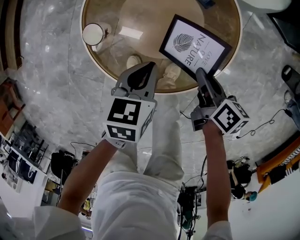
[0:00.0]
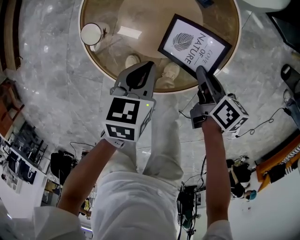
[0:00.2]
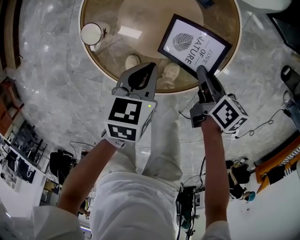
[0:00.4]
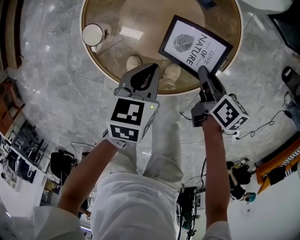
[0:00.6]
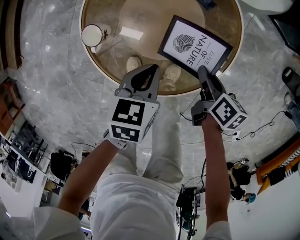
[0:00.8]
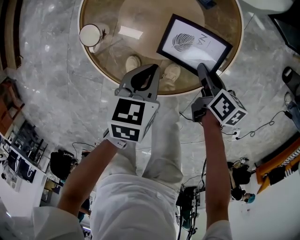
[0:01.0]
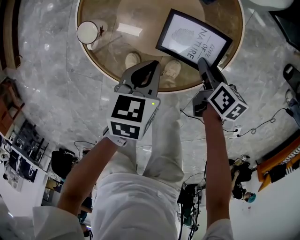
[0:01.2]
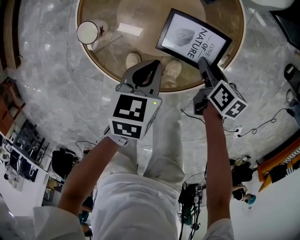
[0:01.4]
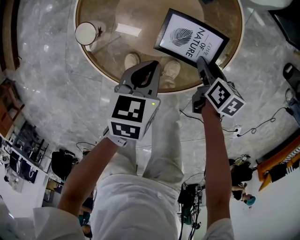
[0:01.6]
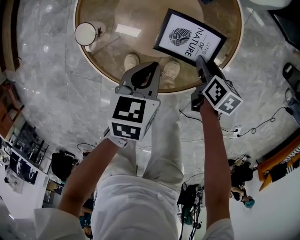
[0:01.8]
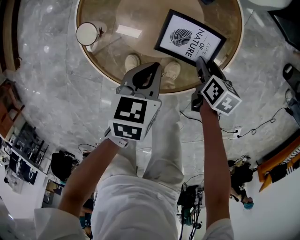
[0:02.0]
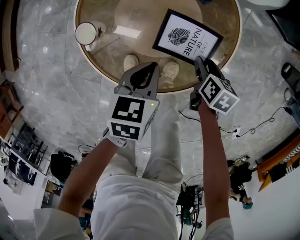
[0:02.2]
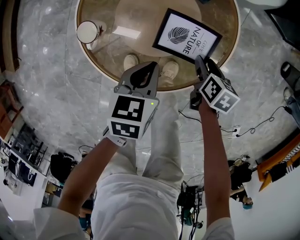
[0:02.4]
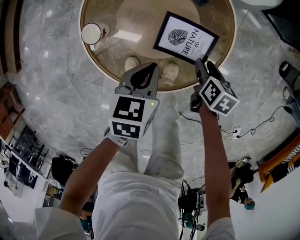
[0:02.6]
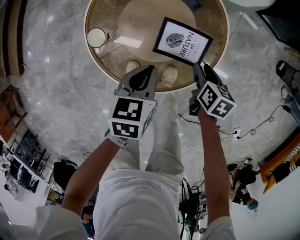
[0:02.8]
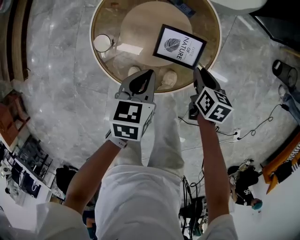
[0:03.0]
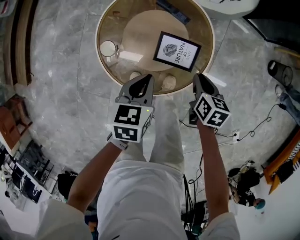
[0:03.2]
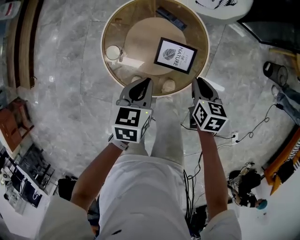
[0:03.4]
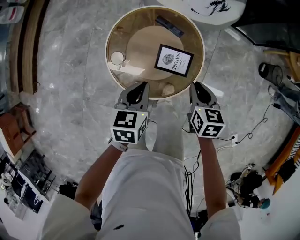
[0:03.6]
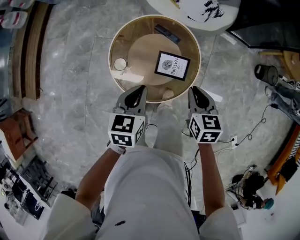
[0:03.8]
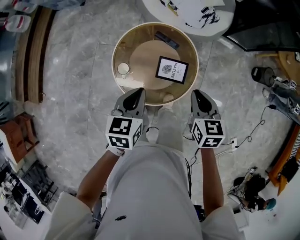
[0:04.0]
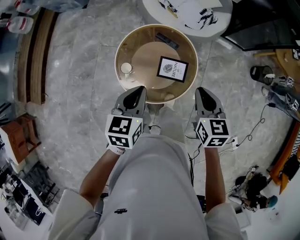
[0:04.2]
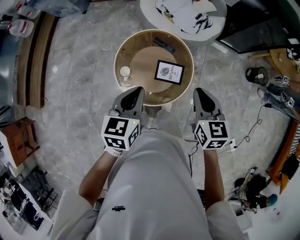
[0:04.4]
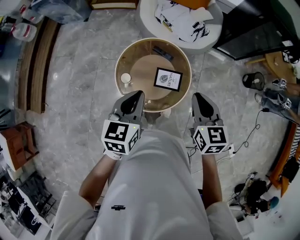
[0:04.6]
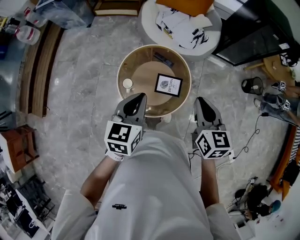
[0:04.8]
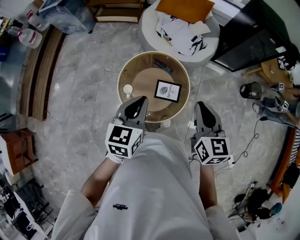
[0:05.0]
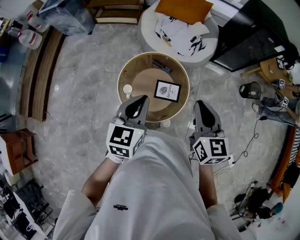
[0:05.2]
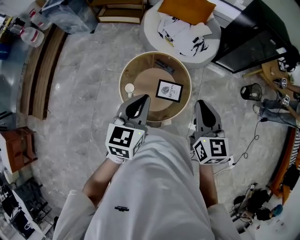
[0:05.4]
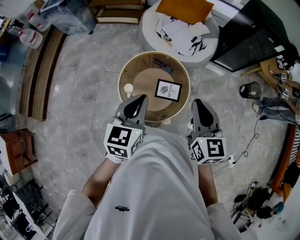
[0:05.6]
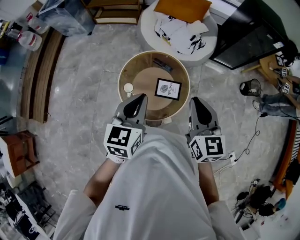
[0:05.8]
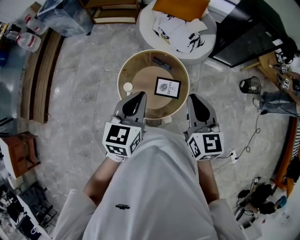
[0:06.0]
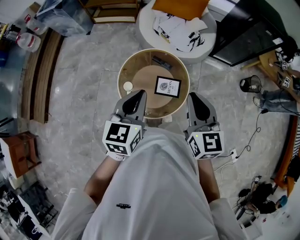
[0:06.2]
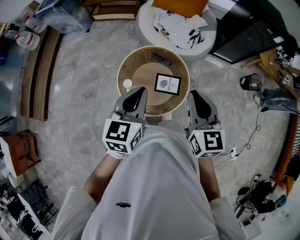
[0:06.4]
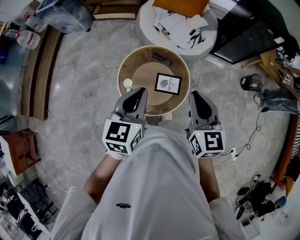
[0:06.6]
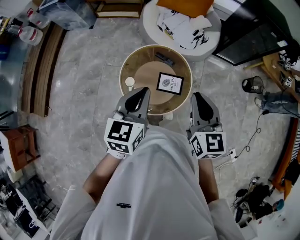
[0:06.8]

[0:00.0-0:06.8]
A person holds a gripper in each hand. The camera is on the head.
0:00.0 to 0:01.4: The right gripper goes about 10 cm downward, and opens.
0:01.4 to 0:02.8: The two grippers go some 5 cm upward.
0:02.8 to 0:04.0: Both grippers move upward, some 30 cm. The right gripper turns by approximately 30 degrees, and closes its fingers.
0:04.0 to 0:05.4: Both grippers move upward, some 20 cm. The right gripper rotates about 20 degrees.
0:05.4 to 0:06.8: The grippers stay close to where they were, moving slightly.

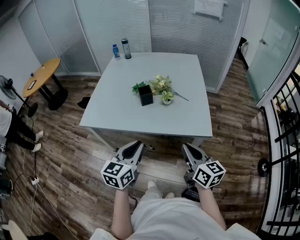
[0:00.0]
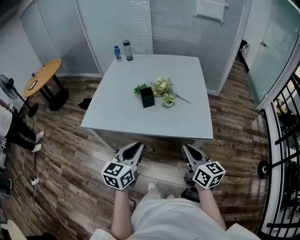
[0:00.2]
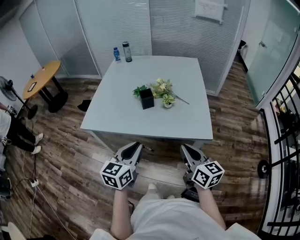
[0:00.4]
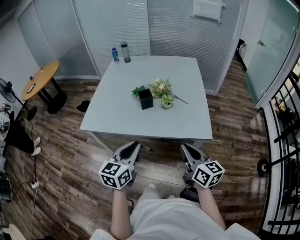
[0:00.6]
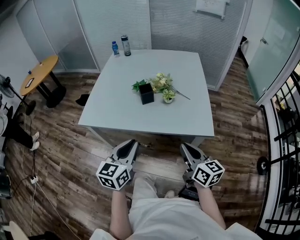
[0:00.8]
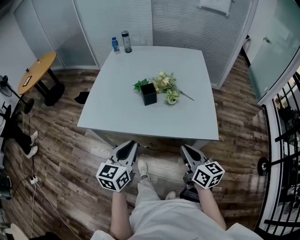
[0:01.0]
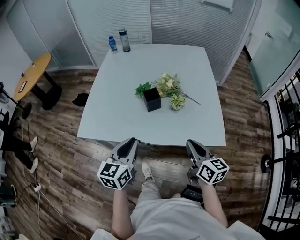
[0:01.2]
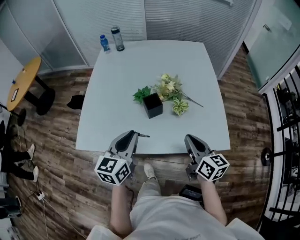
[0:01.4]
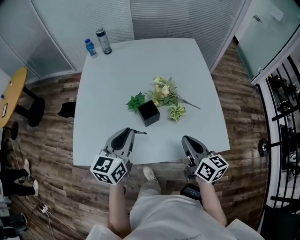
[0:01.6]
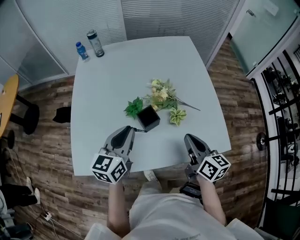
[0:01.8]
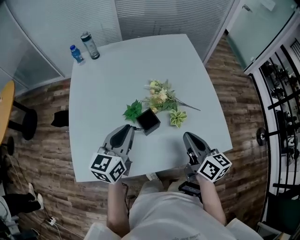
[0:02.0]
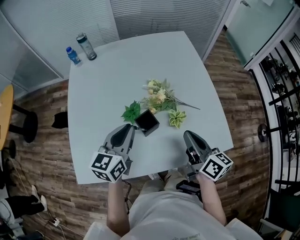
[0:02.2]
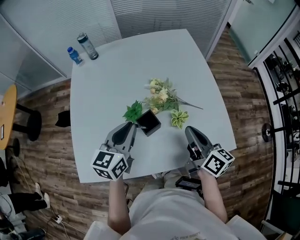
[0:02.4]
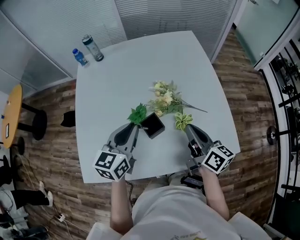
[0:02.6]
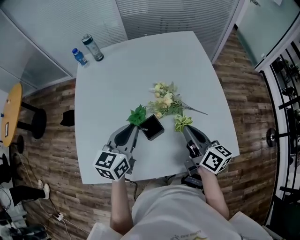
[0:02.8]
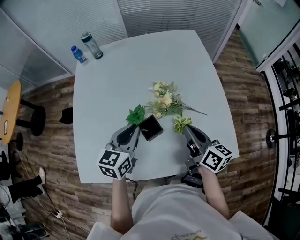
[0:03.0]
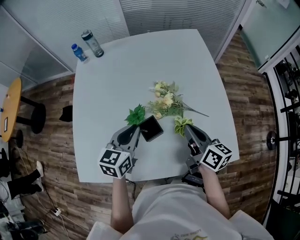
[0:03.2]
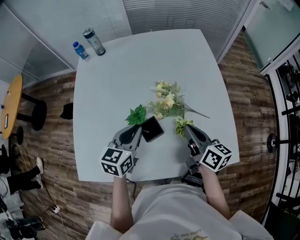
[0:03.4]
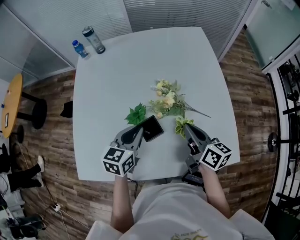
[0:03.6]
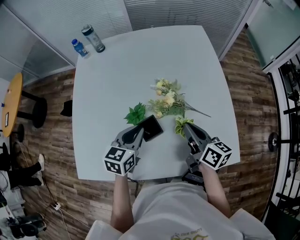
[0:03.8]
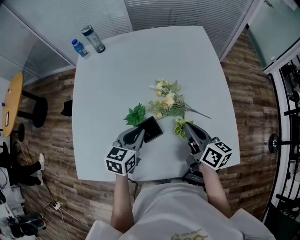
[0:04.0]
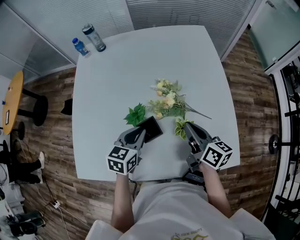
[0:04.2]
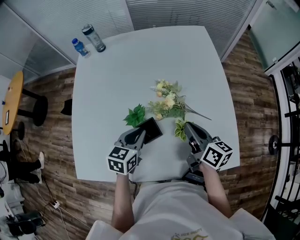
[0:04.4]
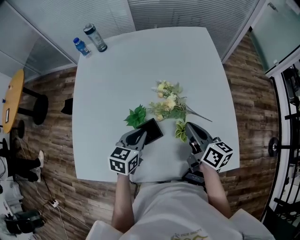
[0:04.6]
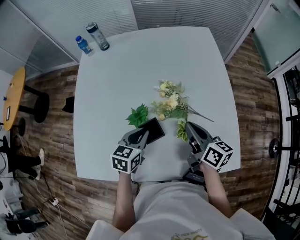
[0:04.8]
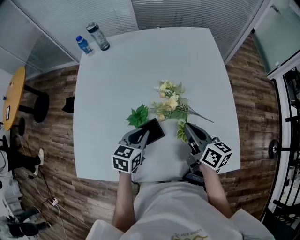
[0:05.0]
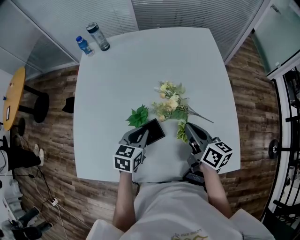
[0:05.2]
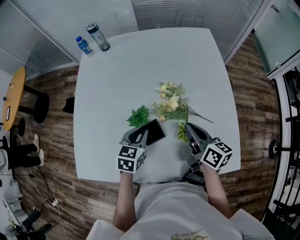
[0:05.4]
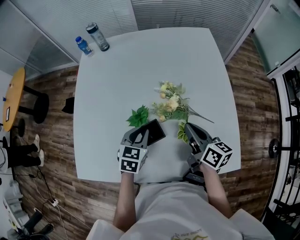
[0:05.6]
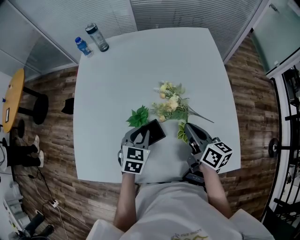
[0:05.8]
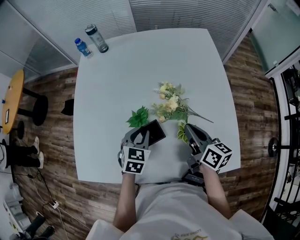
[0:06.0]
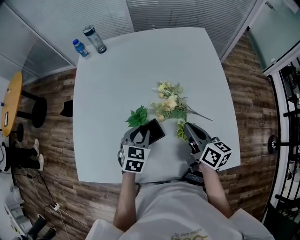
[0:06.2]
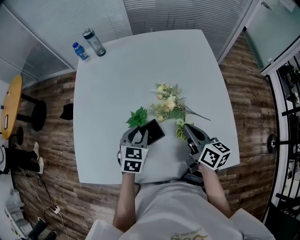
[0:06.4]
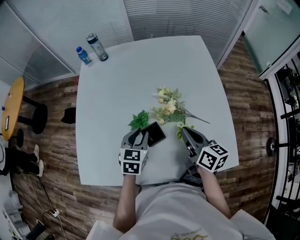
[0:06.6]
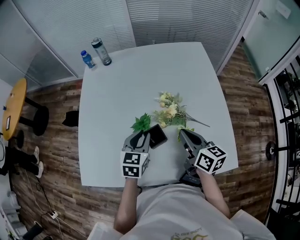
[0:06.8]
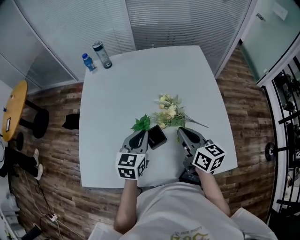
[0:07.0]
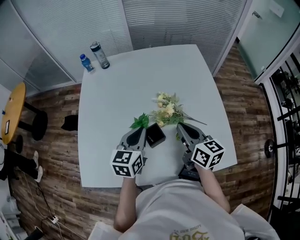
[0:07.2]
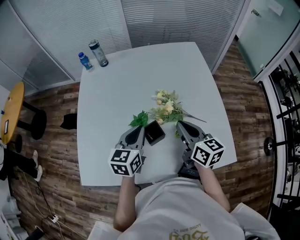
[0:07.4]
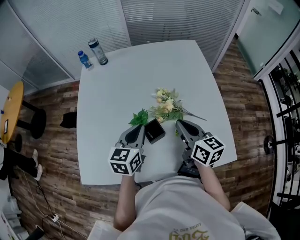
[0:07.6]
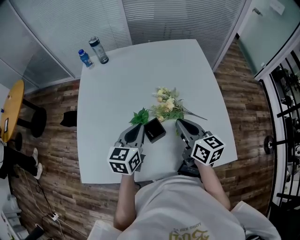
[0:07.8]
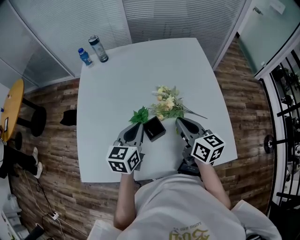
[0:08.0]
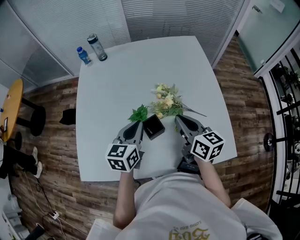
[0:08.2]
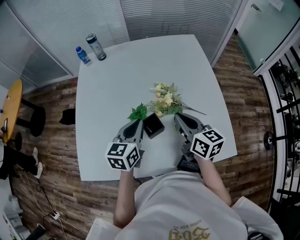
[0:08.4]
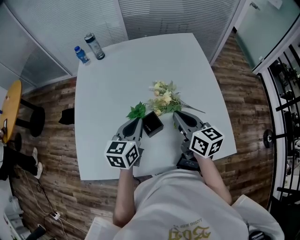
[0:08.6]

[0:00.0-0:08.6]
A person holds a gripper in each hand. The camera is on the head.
0:00.0 to 0:01.4: The right gripper moves forward, roughly 20 cm. Meanwhile the left gripper is displaced forward and to the left by approximately 25 cm.
0:01.4 to 0:02.8: The two grippers go approximately 20 cm forward.
0:02.8 to 0:04.4: The left gripper is displaced downward by approximately 10 cm. The right gripper is displaced forward and downward by approximately 10 cm.
0:04.4 to 0:05.8: The grippers stay close to where they were, moving slightly.
0:05.8 to 0:07.2: The right gripper moves upward, some 5 cm. The left gripper moves upward, some 10 cm, and rotates some 30 degrees.
0:07.2 to 0:08.6: Both grippers stay put.

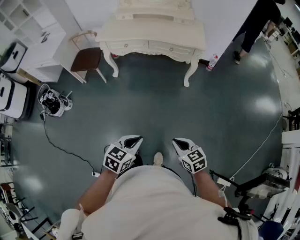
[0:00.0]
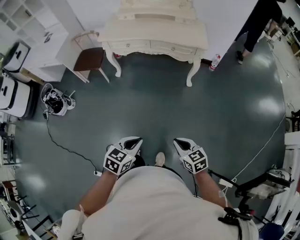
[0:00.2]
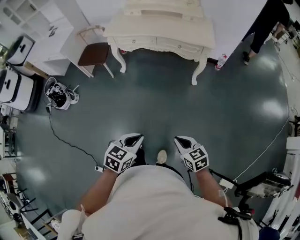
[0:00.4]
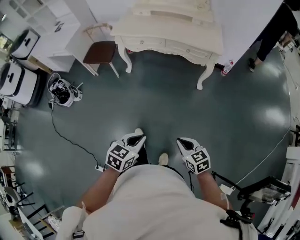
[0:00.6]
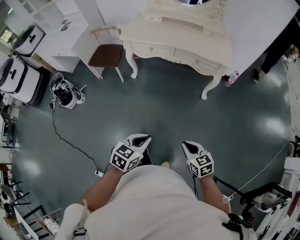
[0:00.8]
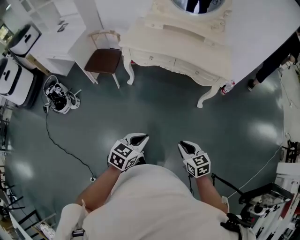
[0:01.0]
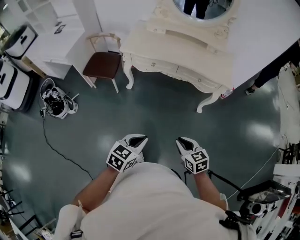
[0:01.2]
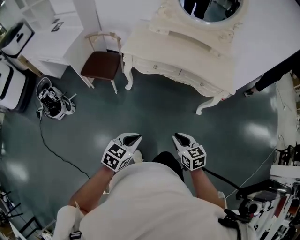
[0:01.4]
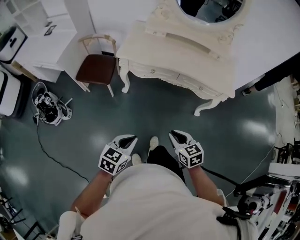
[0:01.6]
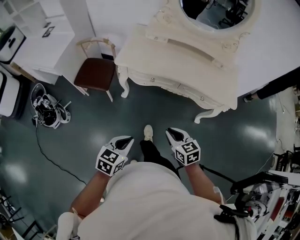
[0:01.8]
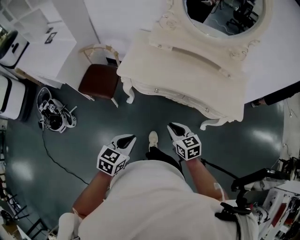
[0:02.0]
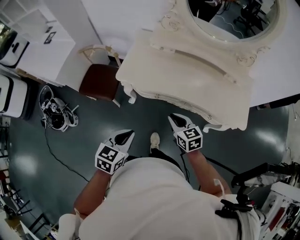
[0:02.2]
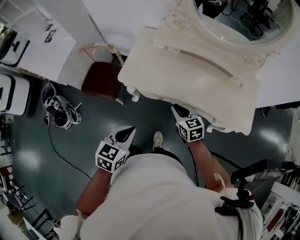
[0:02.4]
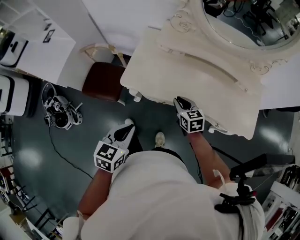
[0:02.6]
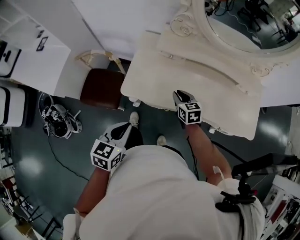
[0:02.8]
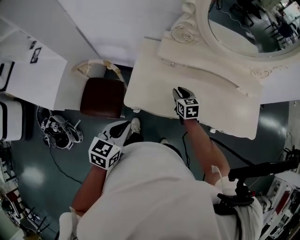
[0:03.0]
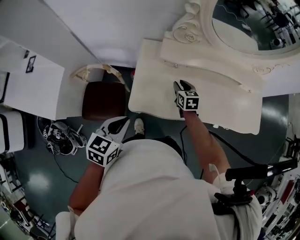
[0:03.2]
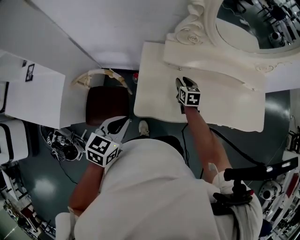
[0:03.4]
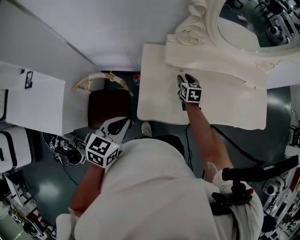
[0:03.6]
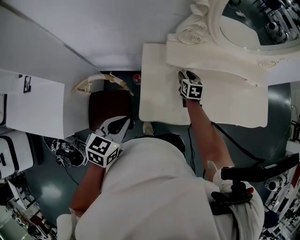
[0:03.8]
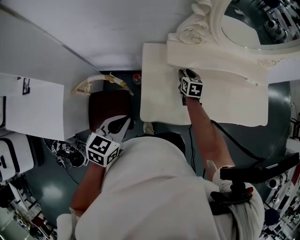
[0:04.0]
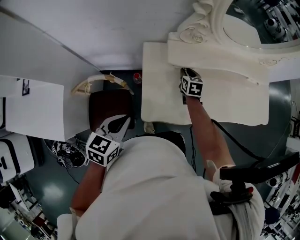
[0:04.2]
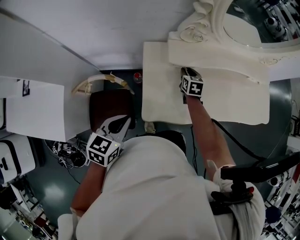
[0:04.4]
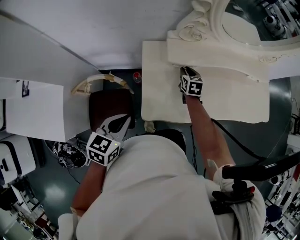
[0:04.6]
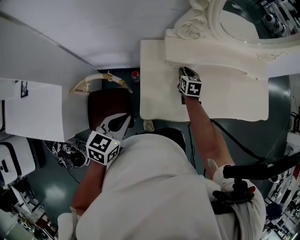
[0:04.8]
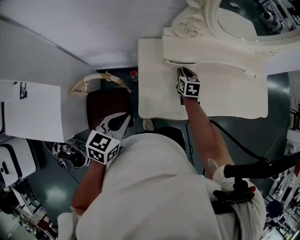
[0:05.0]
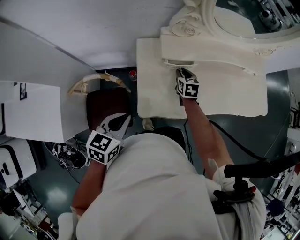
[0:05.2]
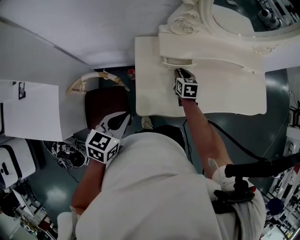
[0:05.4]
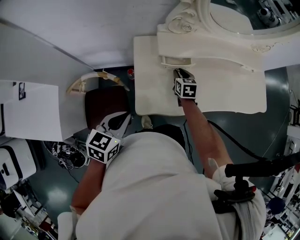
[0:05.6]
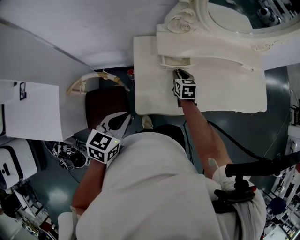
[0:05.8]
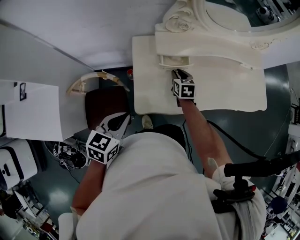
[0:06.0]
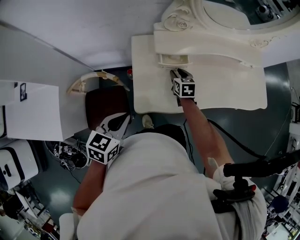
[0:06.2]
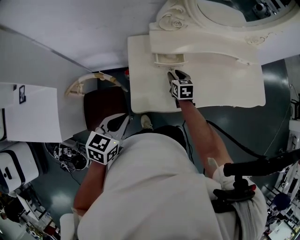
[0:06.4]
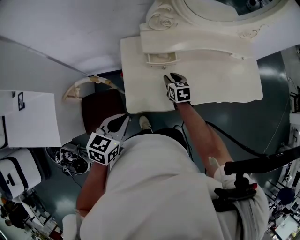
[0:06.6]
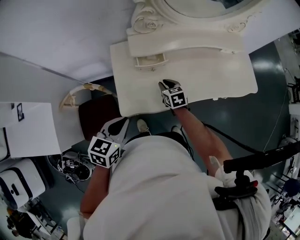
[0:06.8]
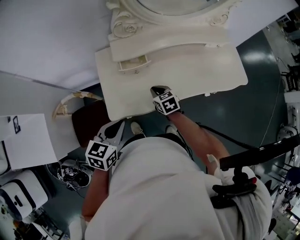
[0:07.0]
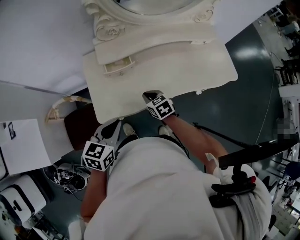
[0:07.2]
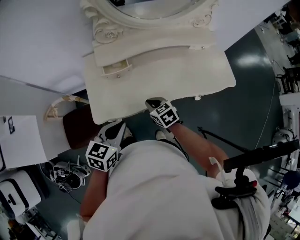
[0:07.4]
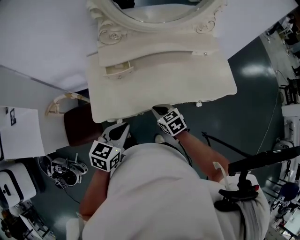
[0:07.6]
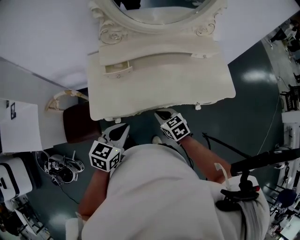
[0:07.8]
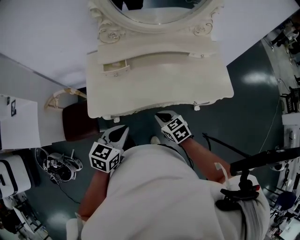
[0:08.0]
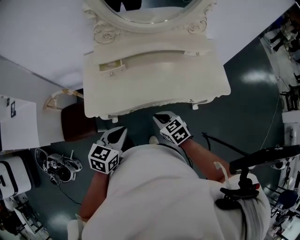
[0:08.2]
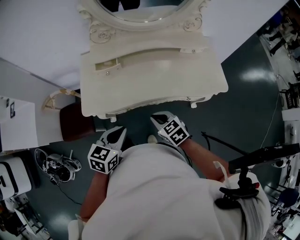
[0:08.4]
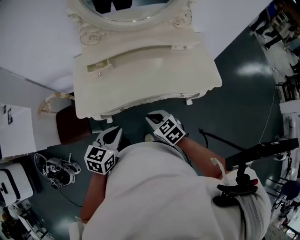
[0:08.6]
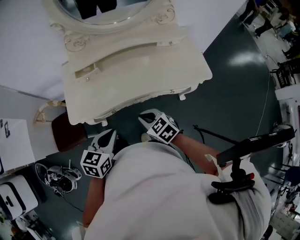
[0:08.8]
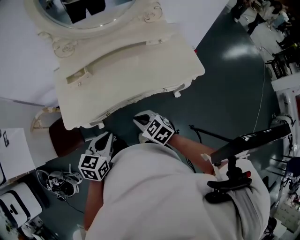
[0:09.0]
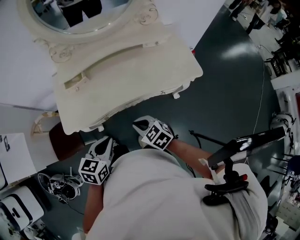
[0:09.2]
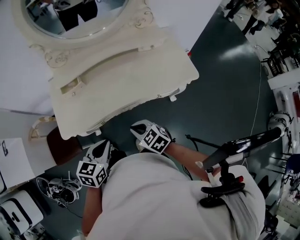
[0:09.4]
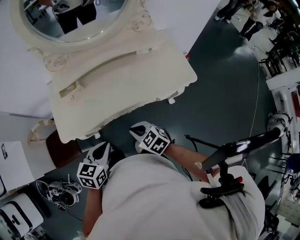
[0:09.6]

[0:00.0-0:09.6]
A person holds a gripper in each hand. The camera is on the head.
0:00.0 to 0:01.6: The two grippers travel together, forward and to the left, roughly 40 cm.
0:01.6 to 0:03.2: Both grippers are carried forward, roughly 70 cm. The right gripper swivels some 20 degrees.
0:03.2 to 0:04.8: The right gripper is displaced forward by roughly 10 cm. Meanwhile the left gripper moves to the left and forward, about 10 cm.
0:04.8 to 0:06.4: The left gripper heads to the right, covering roughly 5 cm; the right gripper shifts approximately 5 cm backward.
0:06.4 to 0:08.0: The right gripper travels backward and to the right by some 35 cm, rotates some 30 degrees, and closes up, while the left gripper heads to the right, covering approximately 30 cm.
0:08.0 to 0:09.6: The left gripper shifts approximately 10 cm to the right, while the right gripper is displaced to the right and backward by roughly 10 cm.
